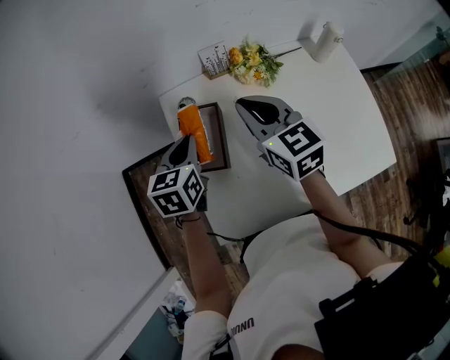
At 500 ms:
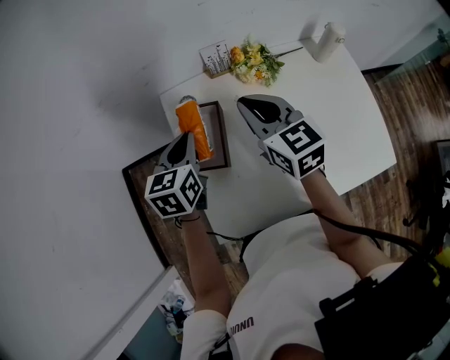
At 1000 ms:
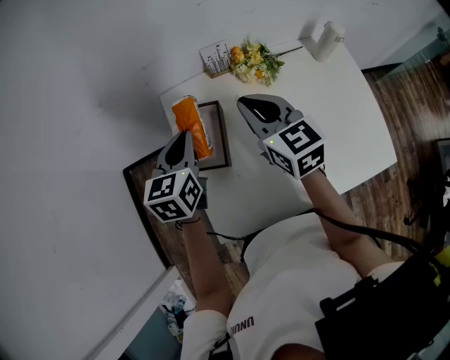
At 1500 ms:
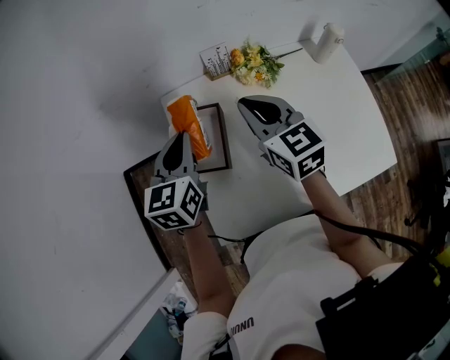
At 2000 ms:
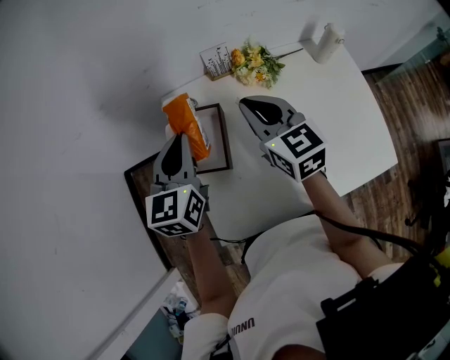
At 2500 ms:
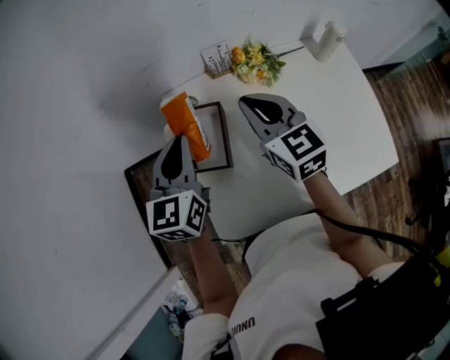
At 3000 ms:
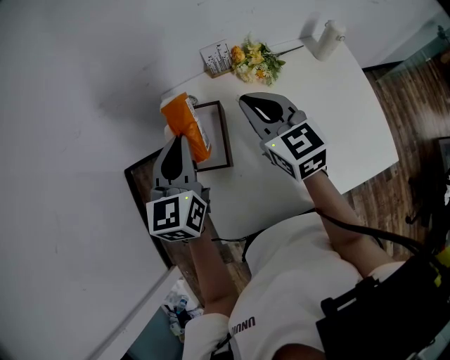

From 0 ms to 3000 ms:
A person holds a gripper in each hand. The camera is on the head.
From 0 ms to 1500 ms: The left gripper heads upward, covering approximately 5 cm.
From 1500 ms to 3000 ms: The grippers make only small movements.

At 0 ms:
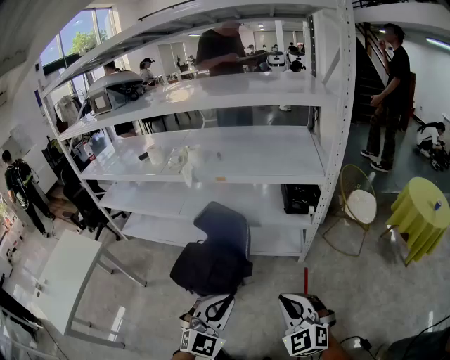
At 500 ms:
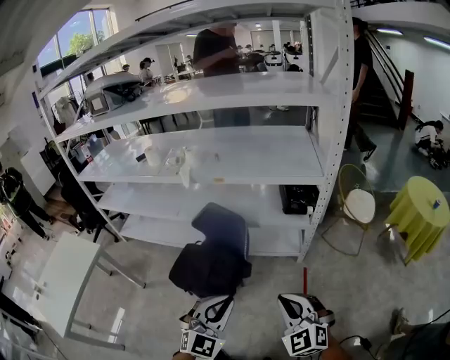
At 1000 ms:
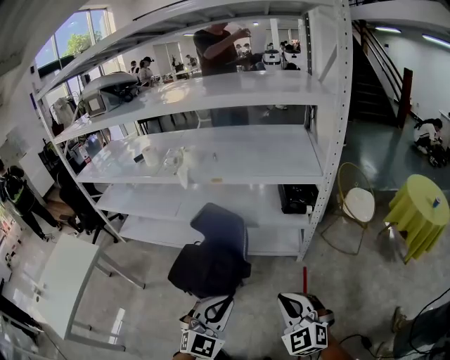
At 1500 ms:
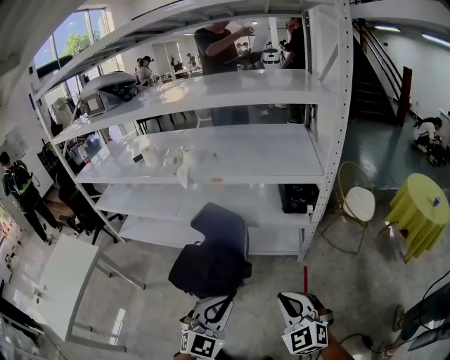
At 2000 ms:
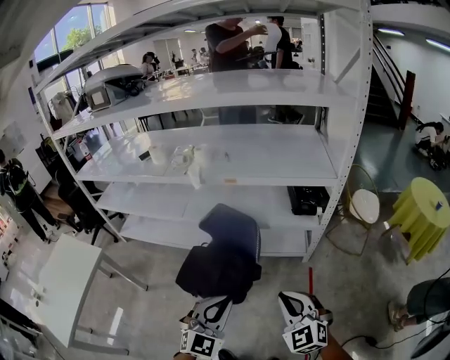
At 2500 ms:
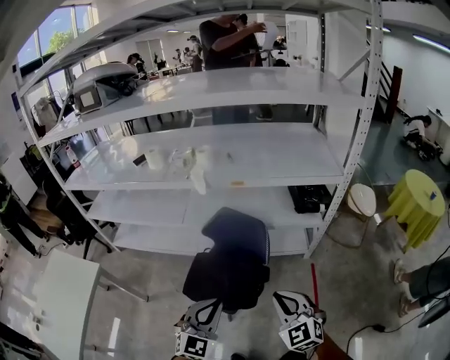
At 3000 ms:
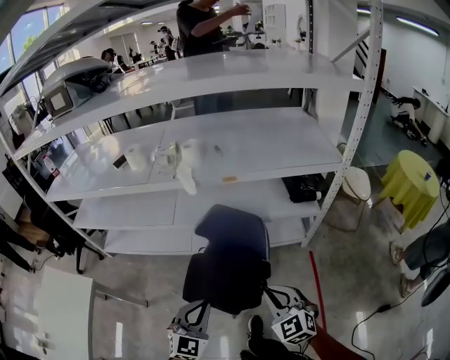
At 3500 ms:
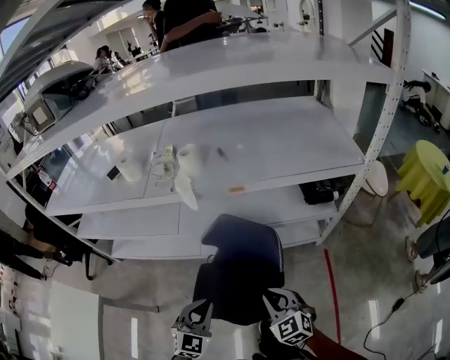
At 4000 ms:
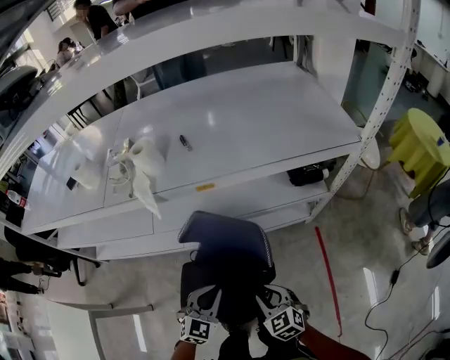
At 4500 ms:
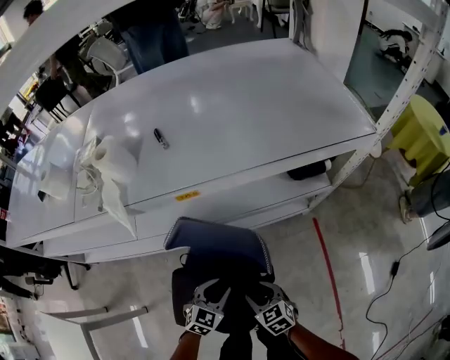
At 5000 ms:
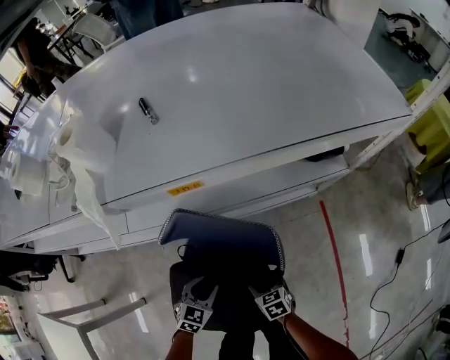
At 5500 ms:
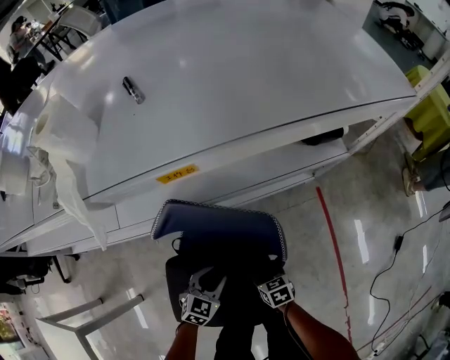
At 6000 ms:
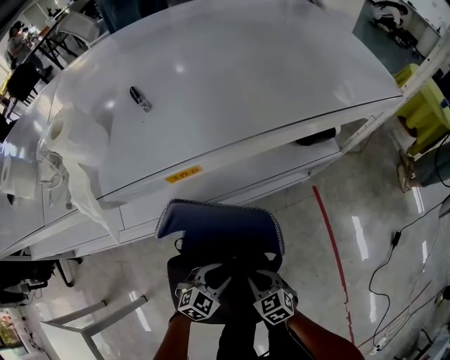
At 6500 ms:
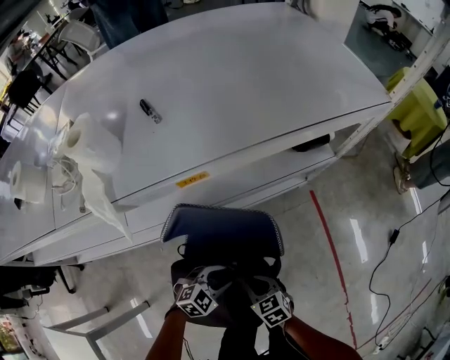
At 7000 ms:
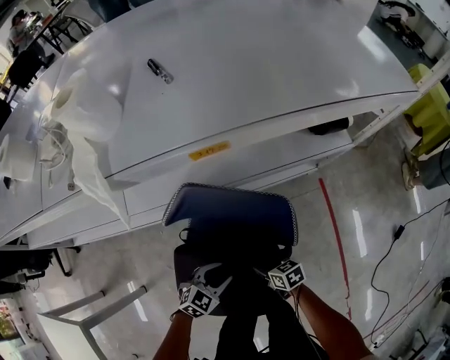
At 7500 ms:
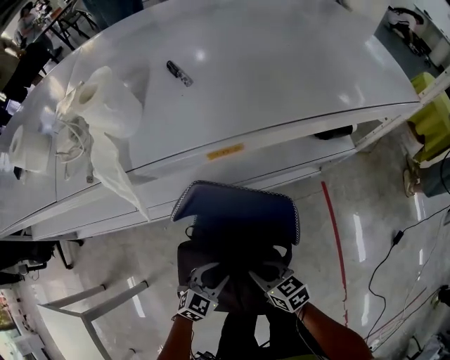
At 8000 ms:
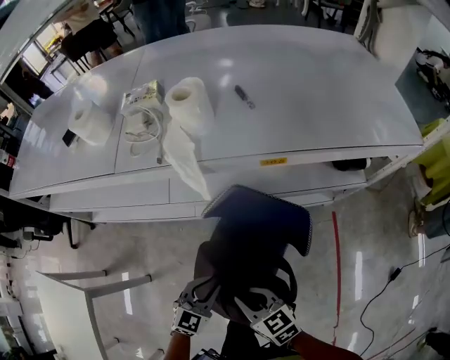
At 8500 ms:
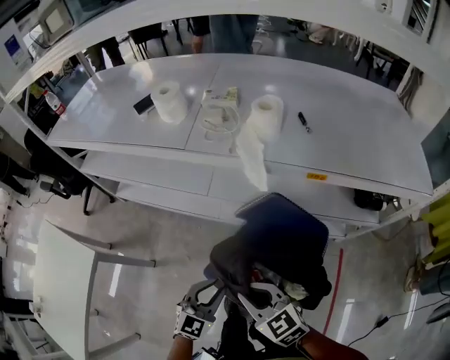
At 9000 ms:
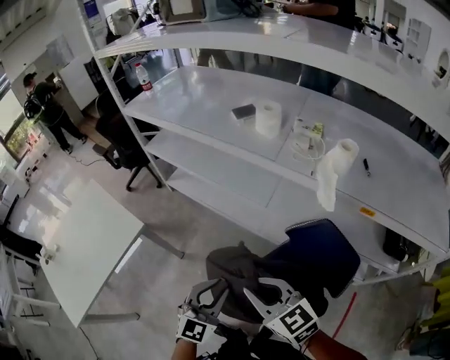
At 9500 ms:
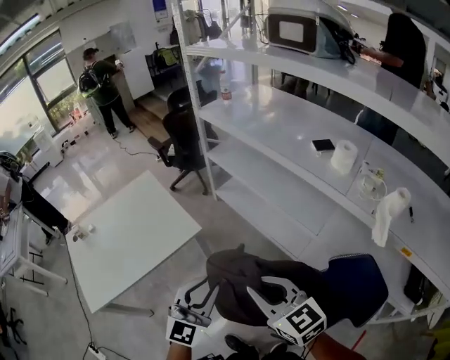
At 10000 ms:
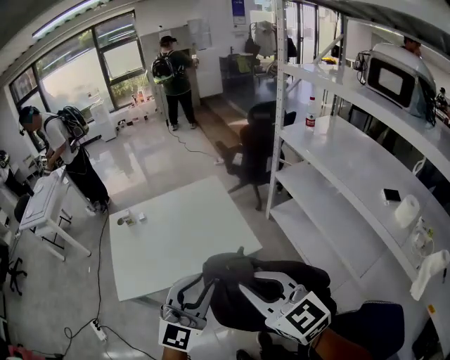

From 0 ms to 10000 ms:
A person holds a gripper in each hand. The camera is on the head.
From 0 ms to 2000 ms: The grippers both shift to the left by roughly 10 cm.
From 2000 ms to 4000 ms: The right gripper moves downward, forward and to the left, some 35 cm, and turns by some 30 degrees. The left gripper goes roughly 35 cm forward and downward, and rotates approximately 20 degrees.
From 4000 ms to 6000 ms: Both grippers move downward, approximately 20 cm. The left gripper turns by about 30 degrees, and opens up, while the right gripper opens, then closes once more.
From 6000 ms to 8000 ms: The right gripper heads upward, covering approximately 20 cm, changes its angle by some 20 degrees, and opens, then closes once more. The left gripper moves about 20 cm, and turns by roughly 30 degrees.
From 8000 ms to 10000 ms: The two grippers travel together, some 60 cm. The left gripper changes its angle by approximately 80 degrees. The right gripper changes its angle by about 80 degrees.

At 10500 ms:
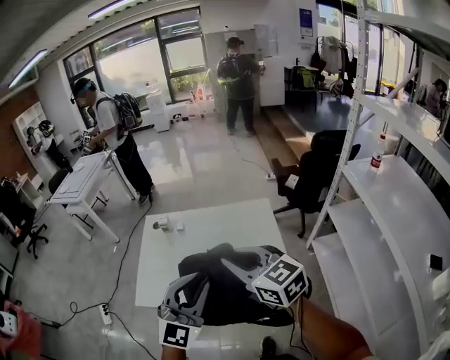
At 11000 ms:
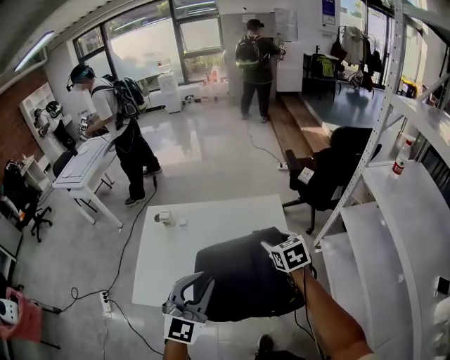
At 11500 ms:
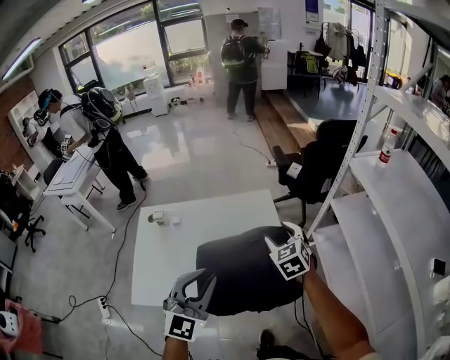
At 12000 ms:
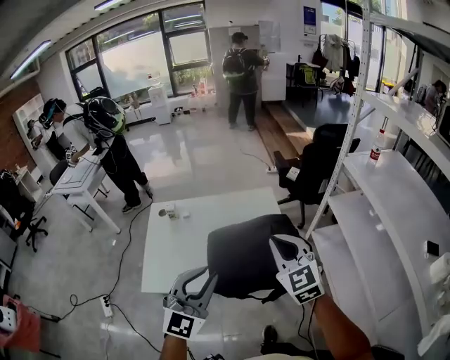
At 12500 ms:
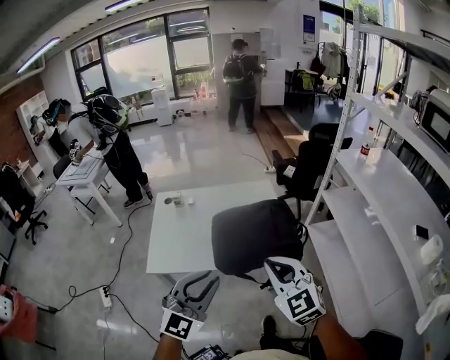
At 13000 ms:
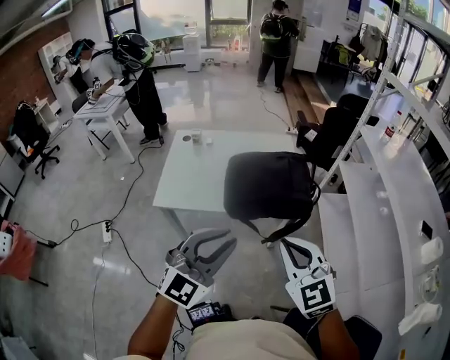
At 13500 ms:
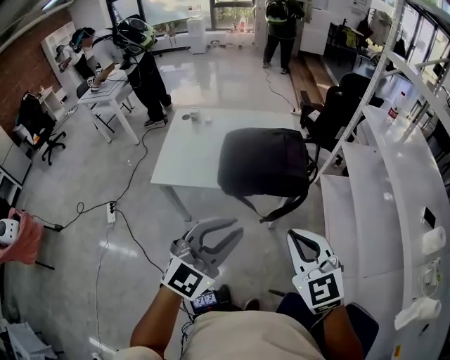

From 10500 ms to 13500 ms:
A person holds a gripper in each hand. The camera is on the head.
From 10500 ms to 12000 ms: The right gripper is displaced to the right by some 10 cm, moves roughly 20 cm downward and comes back, turns by roughly 40 degrees, and opens, then closes again.
From 12000 ms to 13500 ms: The two grippers go some 25 cm backward.

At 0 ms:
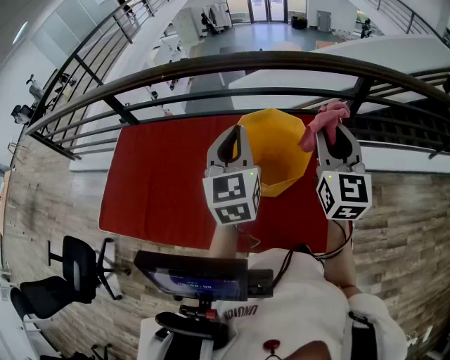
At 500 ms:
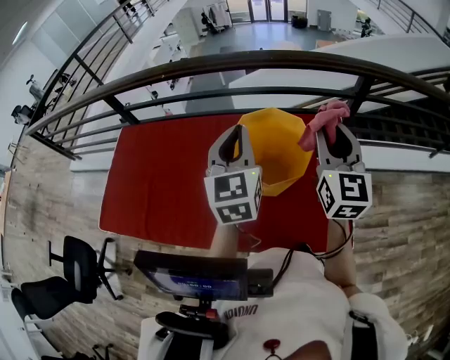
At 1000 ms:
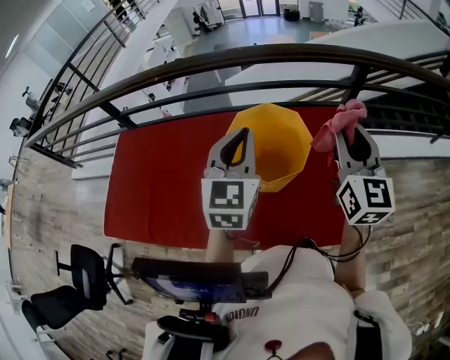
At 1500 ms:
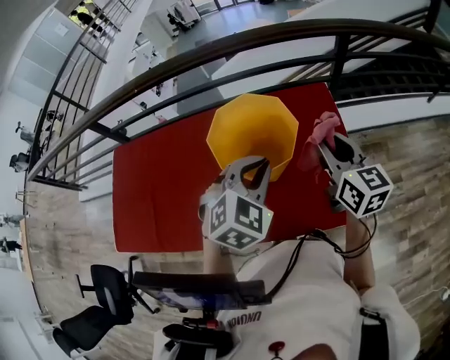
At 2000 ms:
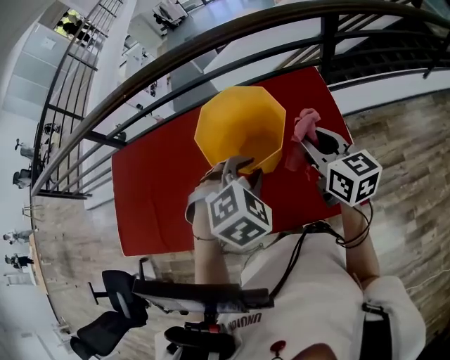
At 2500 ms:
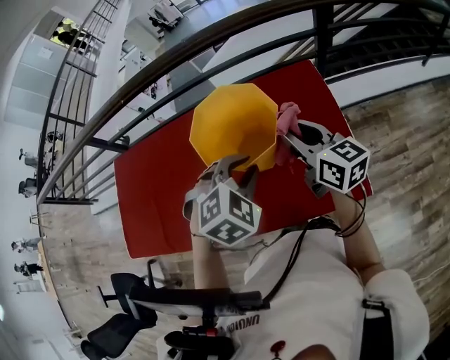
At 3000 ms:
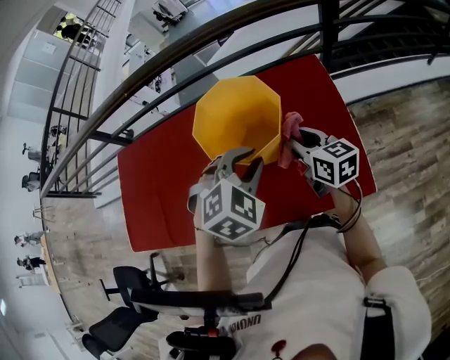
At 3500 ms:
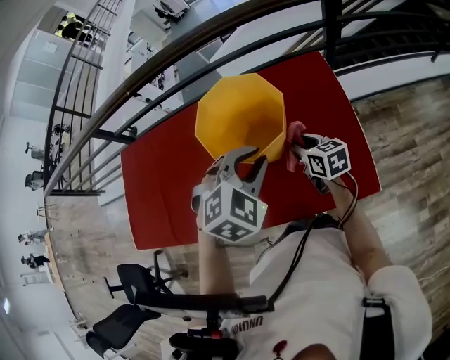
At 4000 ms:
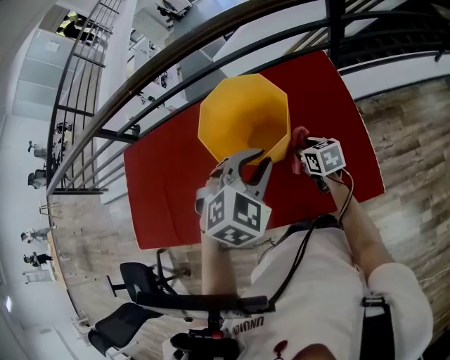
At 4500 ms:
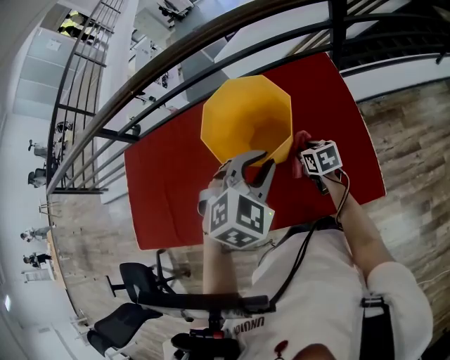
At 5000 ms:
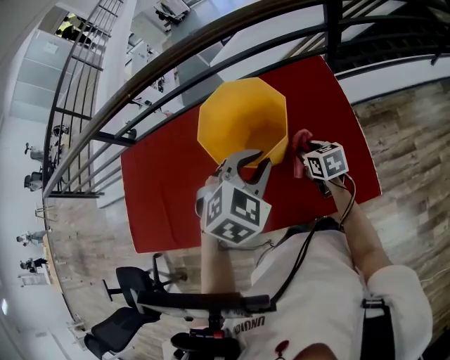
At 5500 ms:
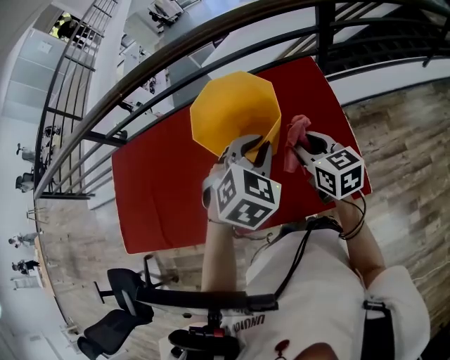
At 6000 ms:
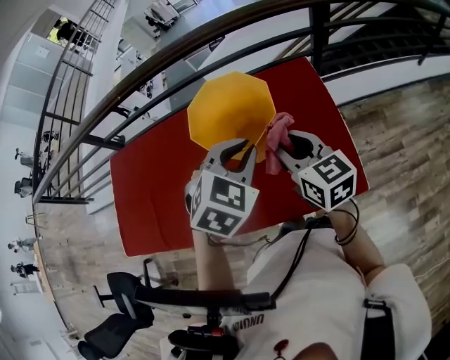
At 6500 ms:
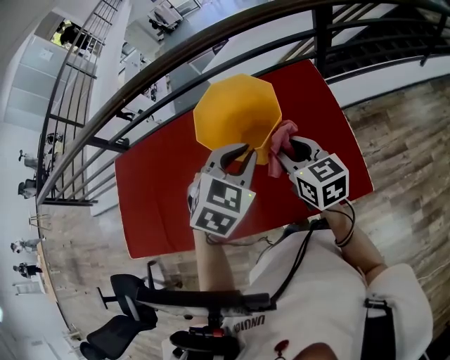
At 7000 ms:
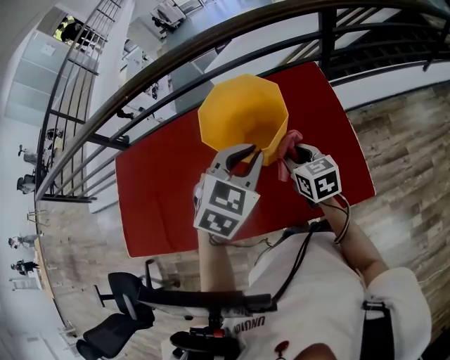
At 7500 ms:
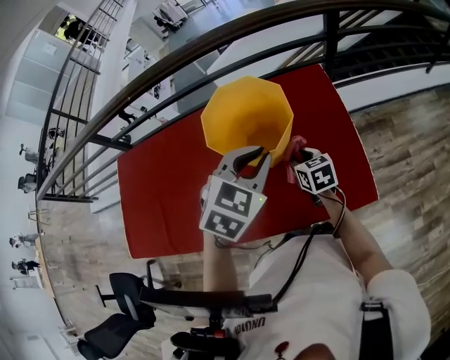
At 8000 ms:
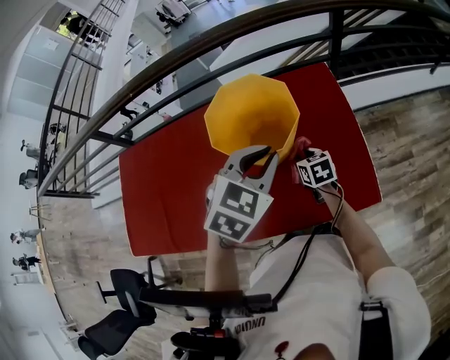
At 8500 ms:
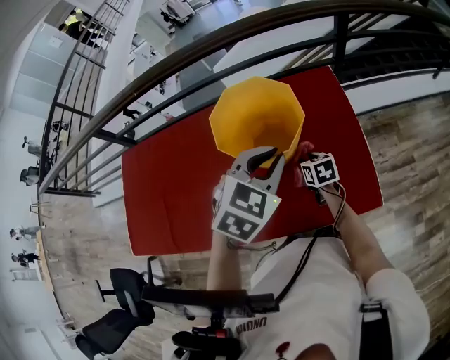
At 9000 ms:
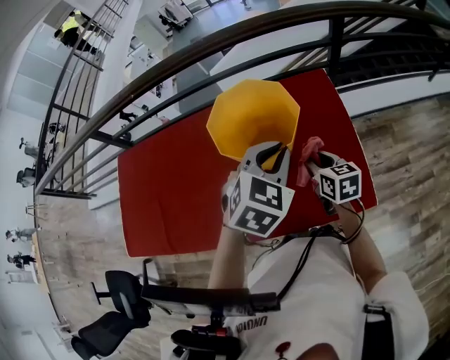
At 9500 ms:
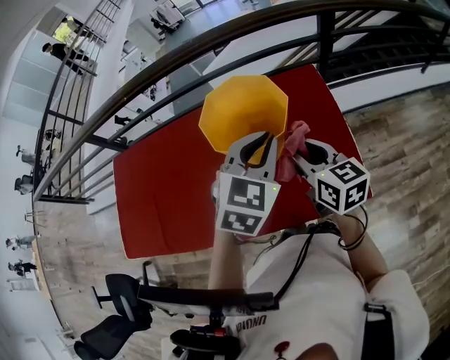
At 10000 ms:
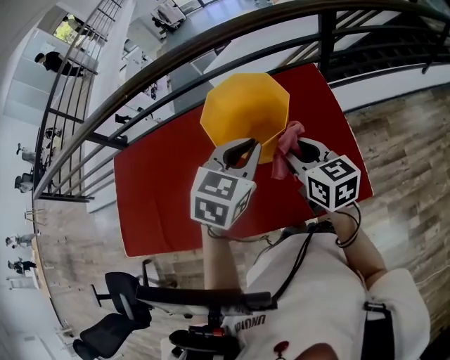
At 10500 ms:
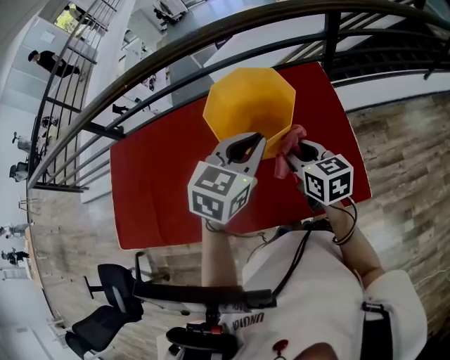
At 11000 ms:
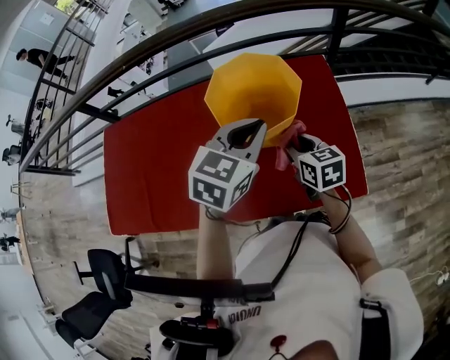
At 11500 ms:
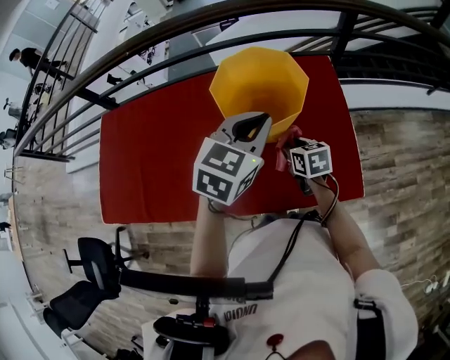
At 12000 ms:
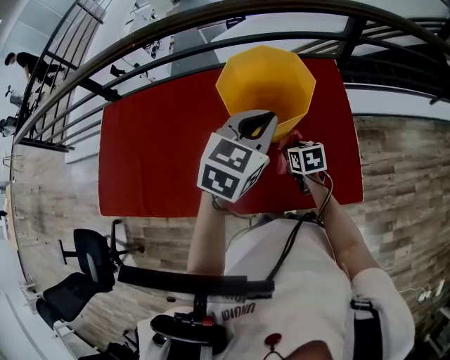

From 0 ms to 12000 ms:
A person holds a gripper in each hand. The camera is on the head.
From 0 ms to 2000 ms: The right gripper is displaced downward by about 15 cm, and swivels about 30 degrees. Meanwhile the left gripper is displaced downward, backward and to the right by roughly 20 cm, tips its fingers downward by about 50 degrees, and opens up.
From 2000 ms to 4000 ms: The right gripper goes some 20 cm downward, and swivels some 30 degrees.
From 4000 ms to 6000 ms: The right gripper goes approximately 20 cm upward, and swivels about 30 degrees.
From 6000 ms to 8000 ms: The right gripper travels downward by roughly 25 cm, and points its fingers roughly 30 degrees further downward.
From 8000 ms to 10000 ms: The right gripper heads upward, covering approximately 20 cm, and changes its angle by roughly 30 degrees.
From 10000 ms to 12000 ms: The right gripper heads downward, covering some 20 cm, and points its fingers approximately 30 degrees further downward.
